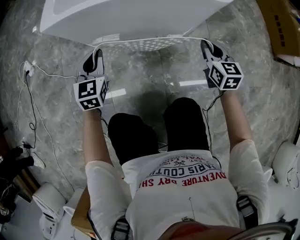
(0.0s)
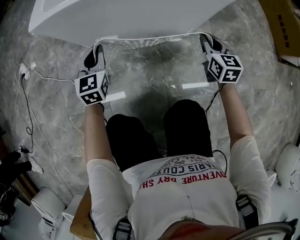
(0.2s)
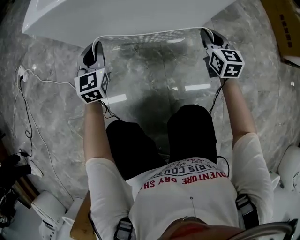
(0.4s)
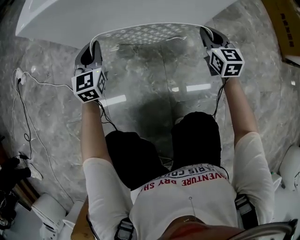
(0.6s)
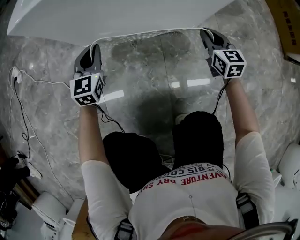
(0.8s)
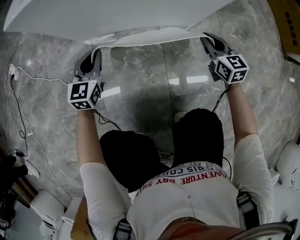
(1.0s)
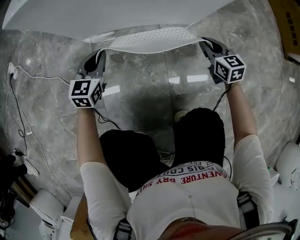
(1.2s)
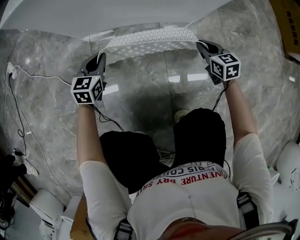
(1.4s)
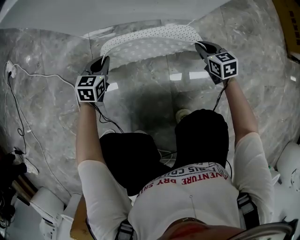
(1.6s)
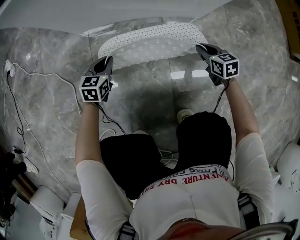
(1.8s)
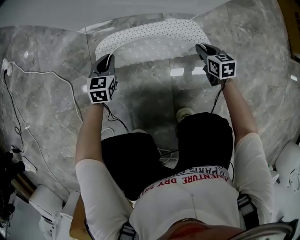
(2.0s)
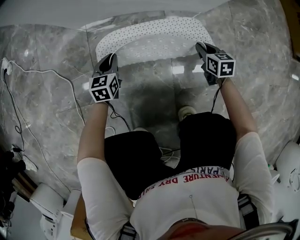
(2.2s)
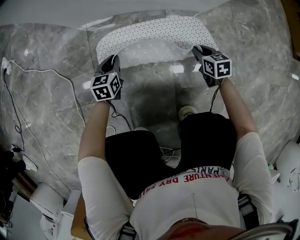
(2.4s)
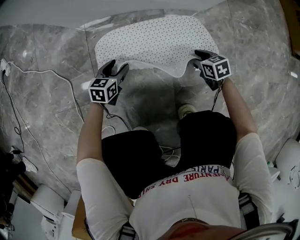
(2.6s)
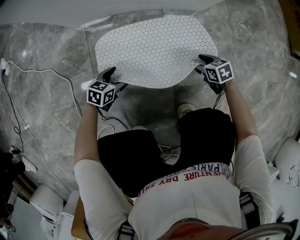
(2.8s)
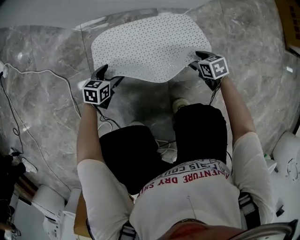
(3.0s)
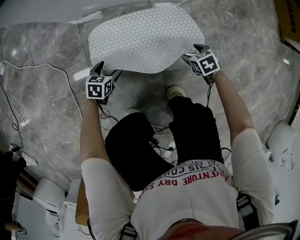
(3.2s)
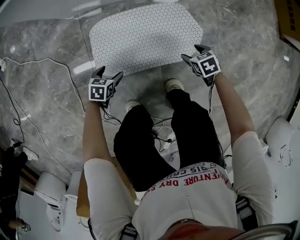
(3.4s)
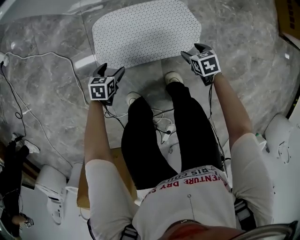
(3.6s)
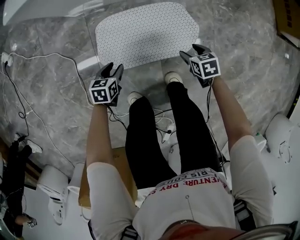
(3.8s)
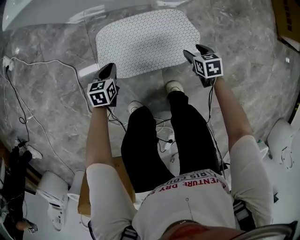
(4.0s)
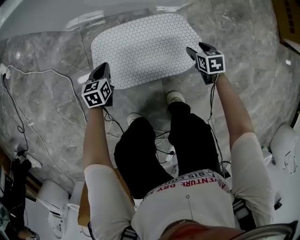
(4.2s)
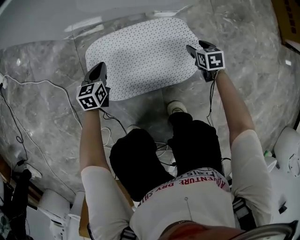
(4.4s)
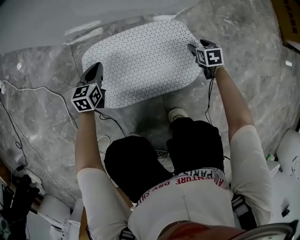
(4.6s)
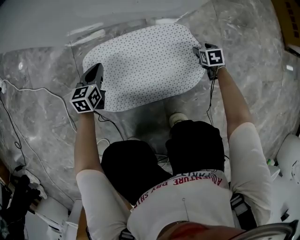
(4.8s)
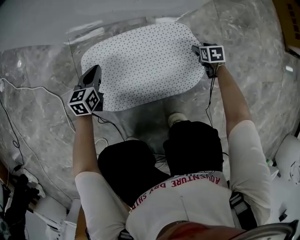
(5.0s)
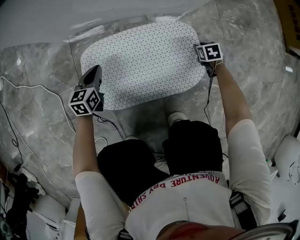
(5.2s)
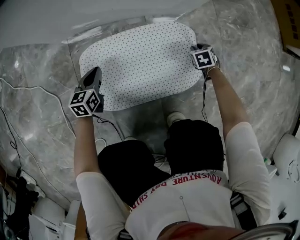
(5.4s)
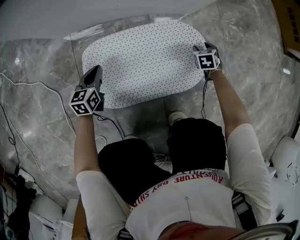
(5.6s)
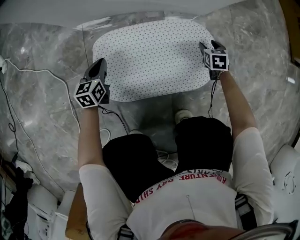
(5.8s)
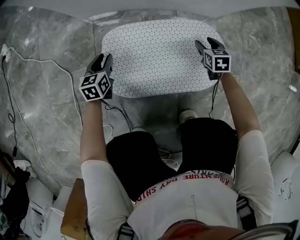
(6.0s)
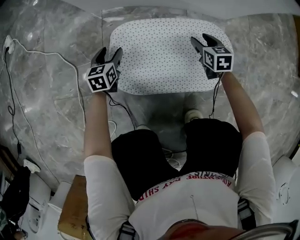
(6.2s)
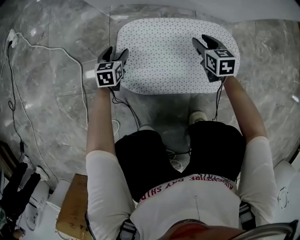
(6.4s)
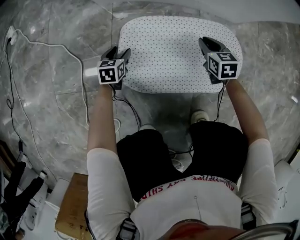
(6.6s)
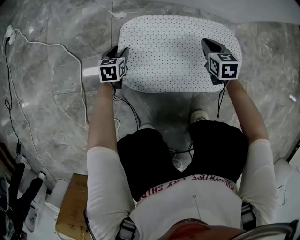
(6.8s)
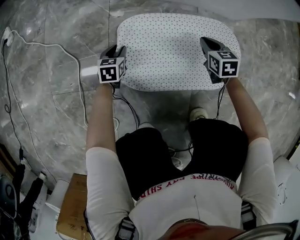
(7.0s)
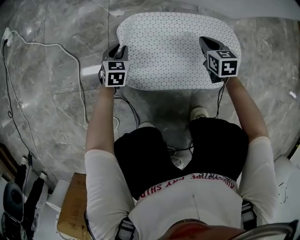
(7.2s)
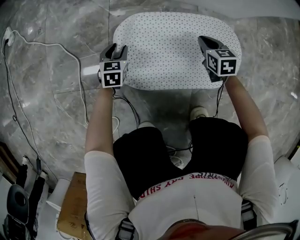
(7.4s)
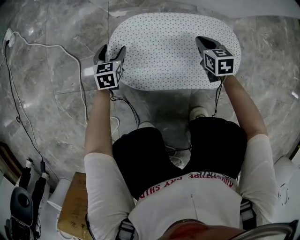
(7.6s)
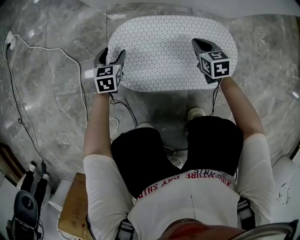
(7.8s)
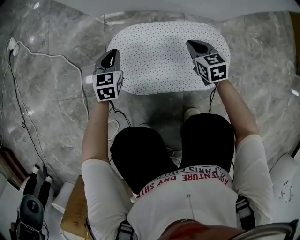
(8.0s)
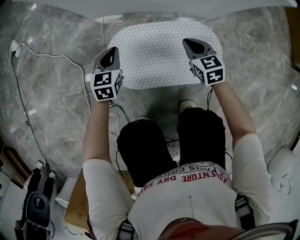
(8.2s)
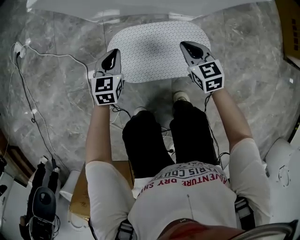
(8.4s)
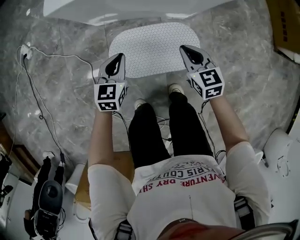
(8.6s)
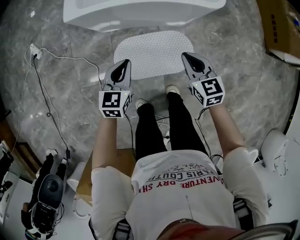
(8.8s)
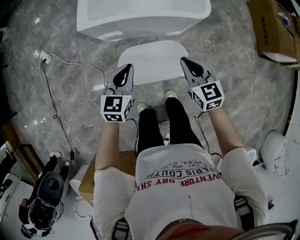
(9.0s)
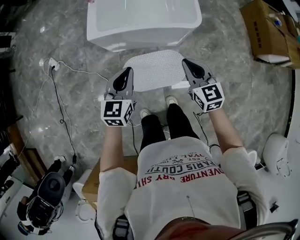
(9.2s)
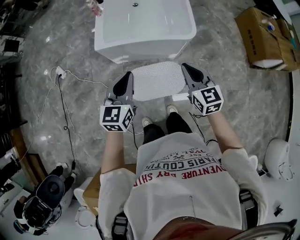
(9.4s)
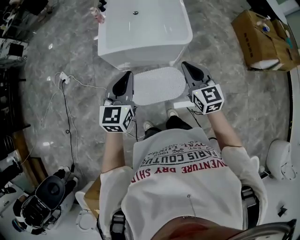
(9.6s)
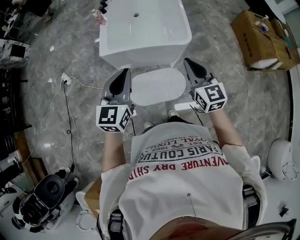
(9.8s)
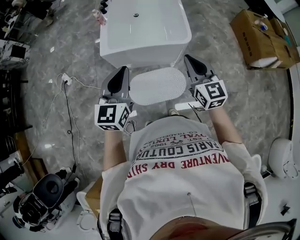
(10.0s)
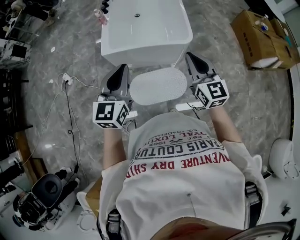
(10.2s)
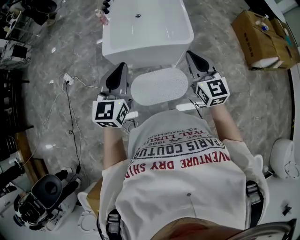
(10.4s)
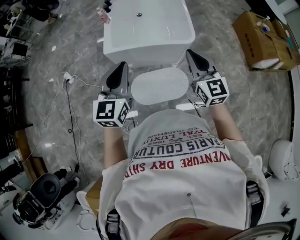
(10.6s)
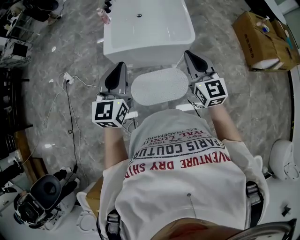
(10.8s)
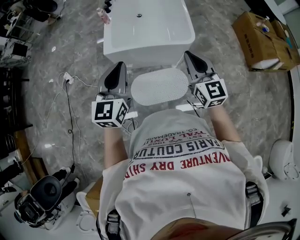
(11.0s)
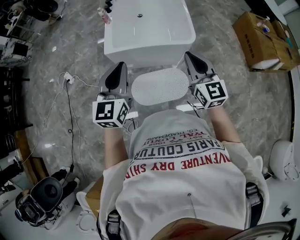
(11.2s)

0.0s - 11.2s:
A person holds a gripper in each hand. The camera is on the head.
0.0s - 1.6s: The grippers both shift downward by roughly 30 cm. The left gripper rotates roughly 20 degrees. Meanwhile the right gripper changes its angle by roughly 20 degrees.
1.6s - 3.2s: The right gripper is displaced backward by approximately 10 cm, rotates roughly 30 degrees, and opens its fingers, while the left gripper travels backward and downward by roughly 15 cm, turns by some 20 degrees, and opens up.
3.2s - 4.8s: The right gripper is displaced forward, to the right and downward by roughly 20 cm, and changes its angle by approximately 20 degrees, while the left gripper is displaced forward by roughly 15 cm, turns by some 30 degrees, and closes.
4.8s - 6.4s: The right gripper changes place by about 25 cm, and swivels some 30 degrees; the left gripper changes place by about 15 cm, and opens.
6.4s - 8.0s: The right gripper ends up about 5 cm from where it was, and closes its fingers. The left gripper moves upward, approximately 10 cm, and closes its fingers.
8.0s - 9.6s: Both grippers travel together upward, roughly 80 cm. The right gripper tips its fingers upward by about 30 degrees, while the left gripper swivels roughly 30 degrees.
9.6s - 11.2s: The right gripper travels upward by approximately 5 cm. The left gripper heads to the left and upward, covering approximately 10 cm.

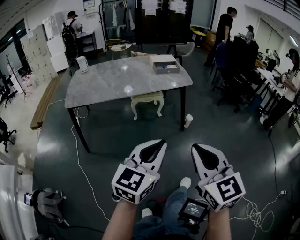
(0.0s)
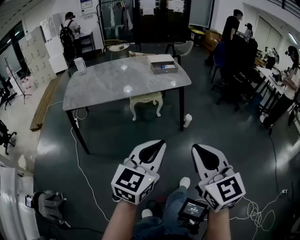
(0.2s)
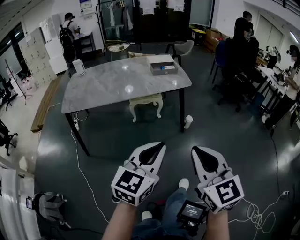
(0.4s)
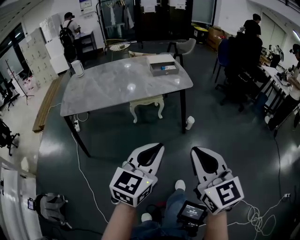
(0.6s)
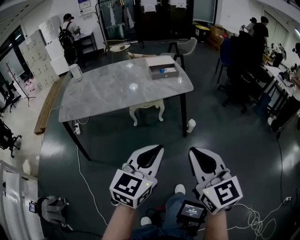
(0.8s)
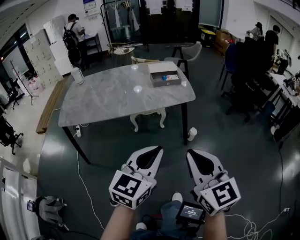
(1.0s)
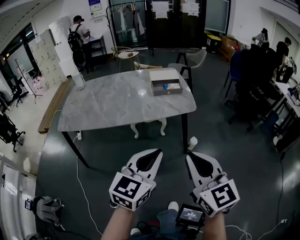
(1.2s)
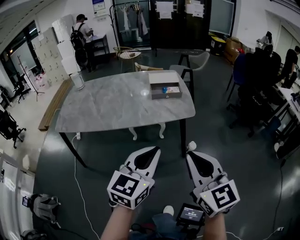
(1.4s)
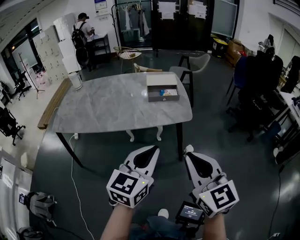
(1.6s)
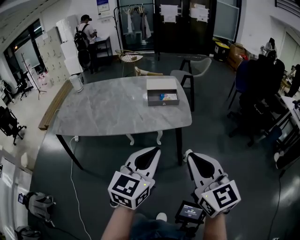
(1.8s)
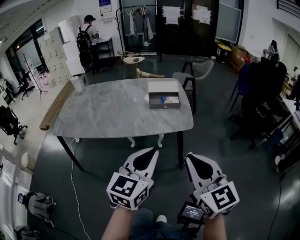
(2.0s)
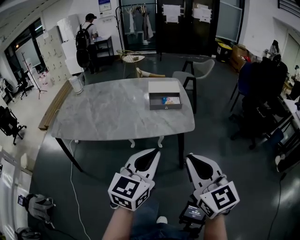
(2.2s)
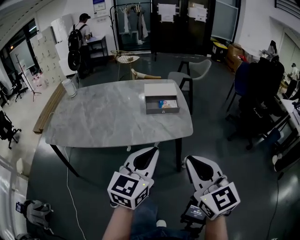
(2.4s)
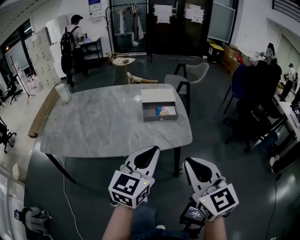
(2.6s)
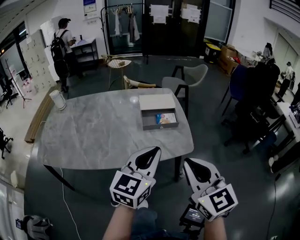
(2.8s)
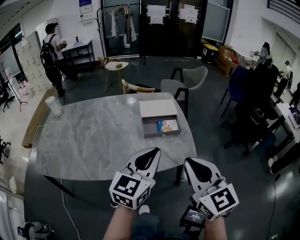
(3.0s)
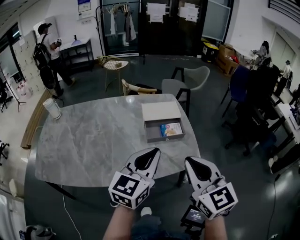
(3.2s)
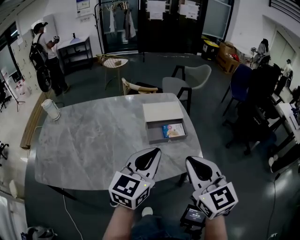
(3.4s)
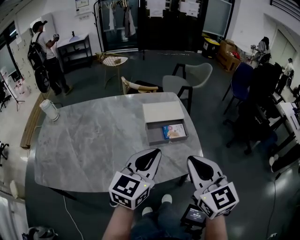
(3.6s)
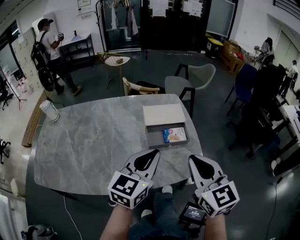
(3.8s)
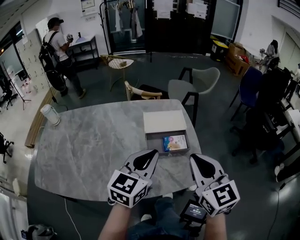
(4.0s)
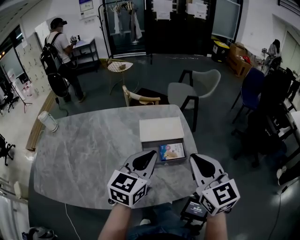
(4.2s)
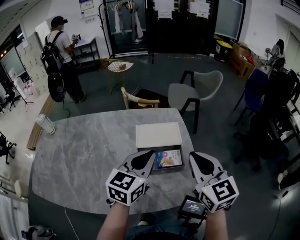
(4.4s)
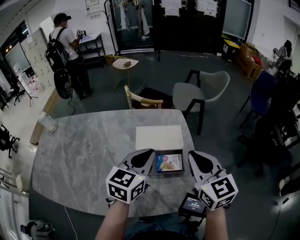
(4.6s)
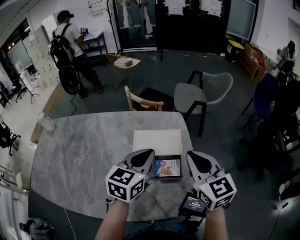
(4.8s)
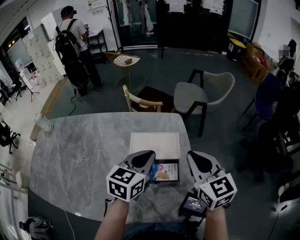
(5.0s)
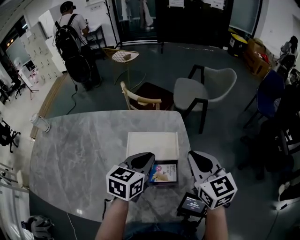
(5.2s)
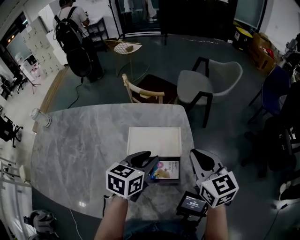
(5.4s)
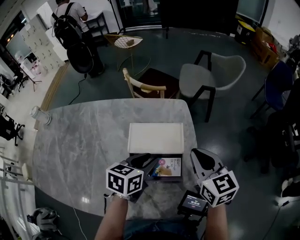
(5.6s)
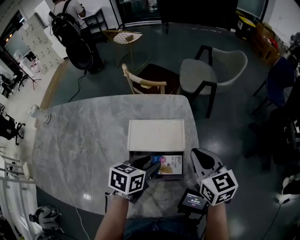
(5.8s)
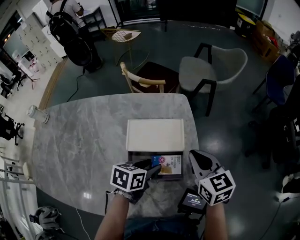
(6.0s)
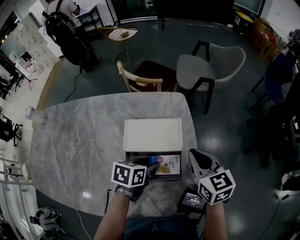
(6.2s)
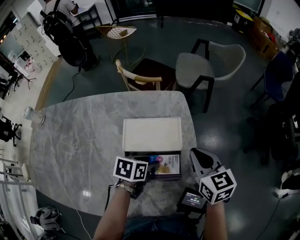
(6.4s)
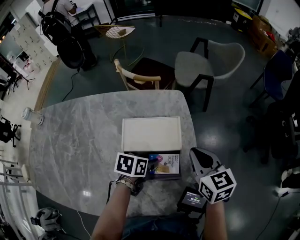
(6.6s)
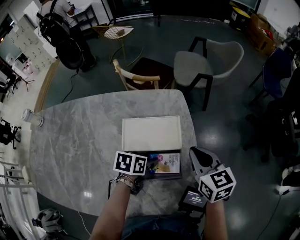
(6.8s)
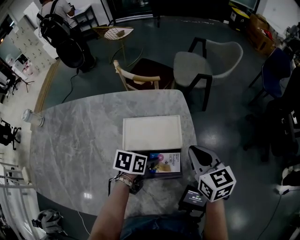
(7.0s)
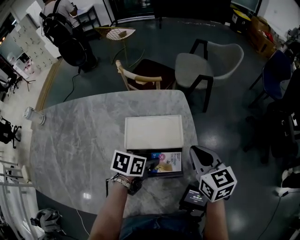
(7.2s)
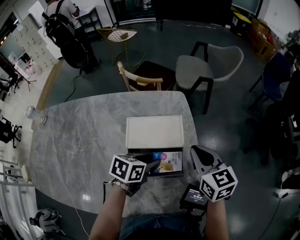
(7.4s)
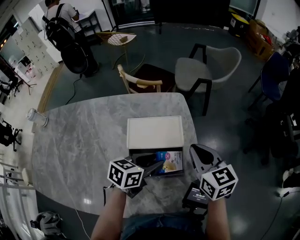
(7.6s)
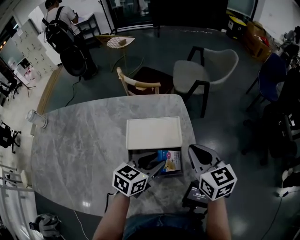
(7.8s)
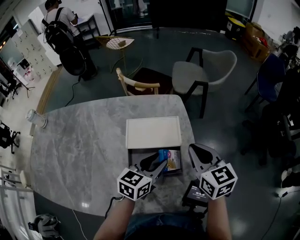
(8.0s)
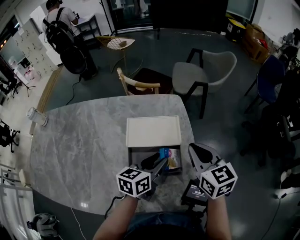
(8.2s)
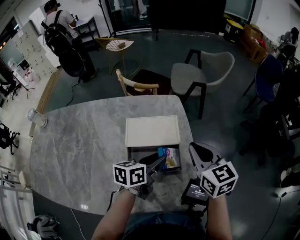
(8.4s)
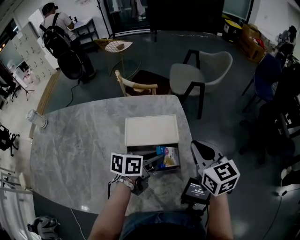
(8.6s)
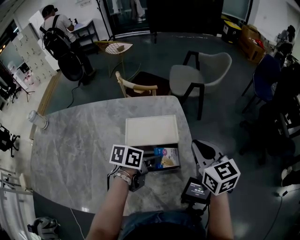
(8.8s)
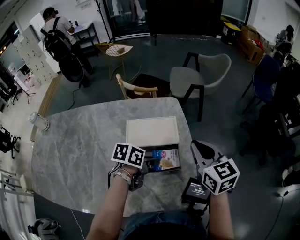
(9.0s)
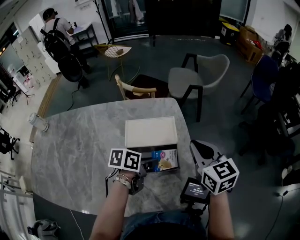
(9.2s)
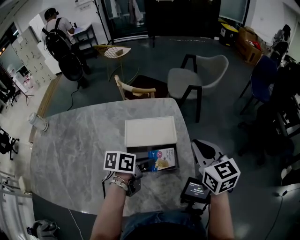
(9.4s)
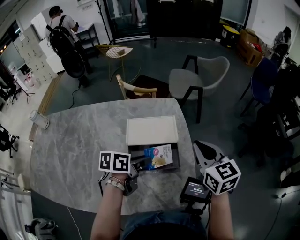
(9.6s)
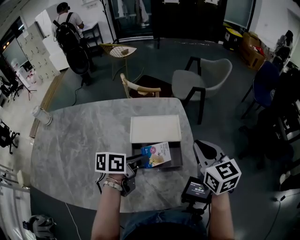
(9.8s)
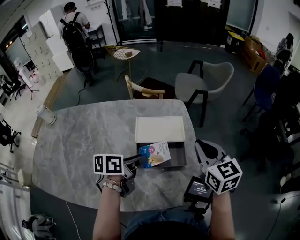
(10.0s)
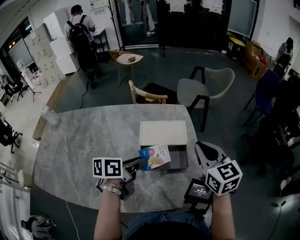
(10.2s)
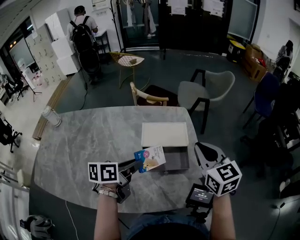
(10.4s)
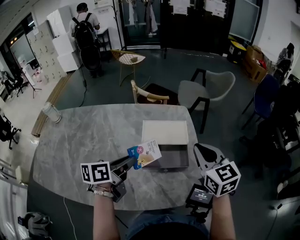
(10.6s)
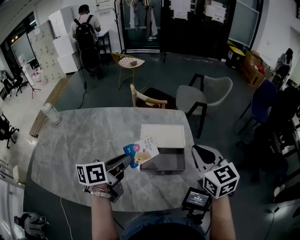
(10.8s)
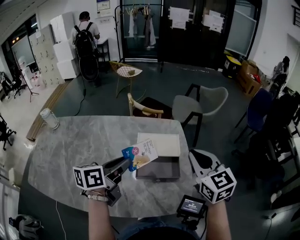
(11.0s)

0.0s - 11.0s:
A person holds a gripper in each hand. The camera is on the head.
0.0s - 1.6s: Both grippers travel together forward and to the right, some 35 cm.
1.6s - 3.2s: Both grippers travel together forward, approximately 30 cm.
3.2s - 4.8s: Both grippers travel together forward, about 25 cm.
4.8s - 6.2s: The left gripper shifts roughly 20 cm downward, changes its angle by roughly 40 degrees, and opens. Meanwhile the right gripper shifts some 15 cm downward and forward.
6.2s - 7.8s: The left gripper travels upward by roughly 5 cm, and turns by about 30 degrees.
7.8s - 9.4s: The left gripper changes its angle by approximately 40 degrees, and closes up.
9.4s - 11.0s: The left gripper travels upward and to the left by roughly 20 cm, and swivels about 30 degrees. The right gripper is displaced upward by approximately 10 cm.

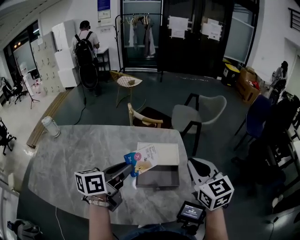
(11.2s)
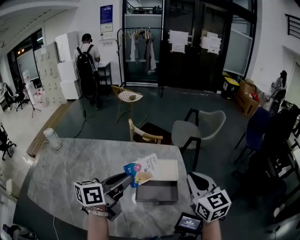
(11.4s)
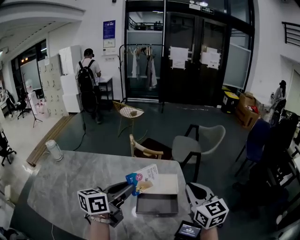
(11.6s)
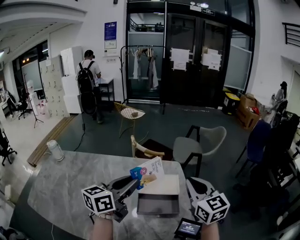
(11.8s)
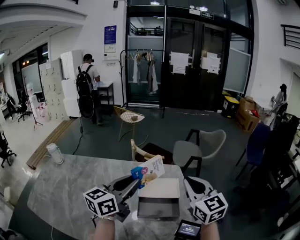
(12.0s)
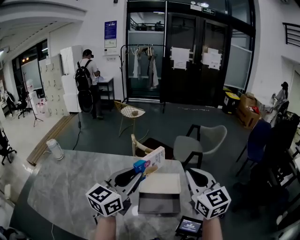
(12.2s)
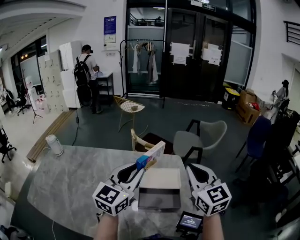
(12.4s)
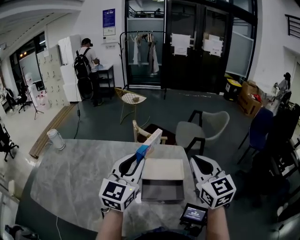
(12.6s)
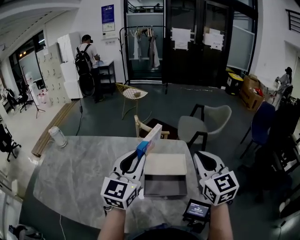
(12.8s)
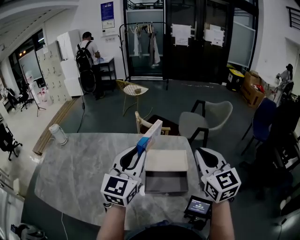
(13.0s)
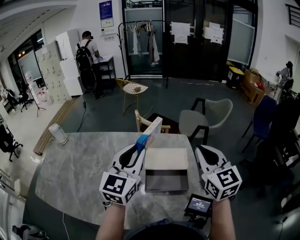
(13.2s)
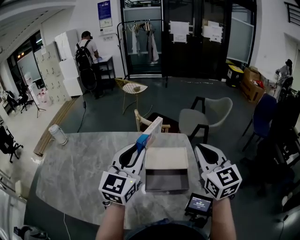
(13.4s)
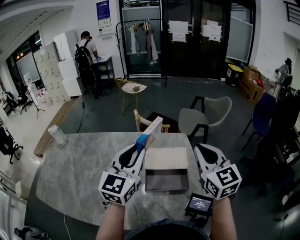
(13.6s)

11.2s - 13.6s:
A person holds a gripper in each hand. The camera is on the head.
11.2s - 12.4s: Both grippers move upward, roughly 5 cm. The left gripper rotates around the line of its fingers by about 50 degrees, clockwise from behind.
12.4s - 13.6s: The grippers make only small movements.
